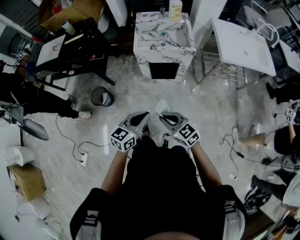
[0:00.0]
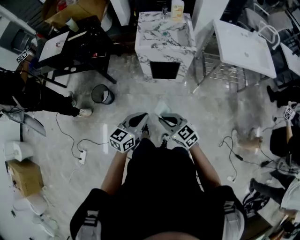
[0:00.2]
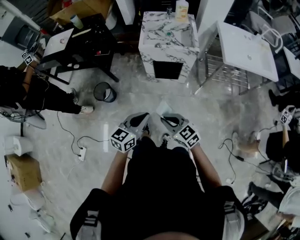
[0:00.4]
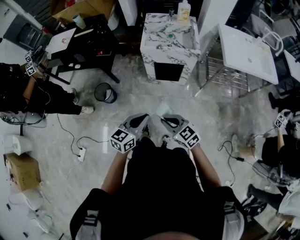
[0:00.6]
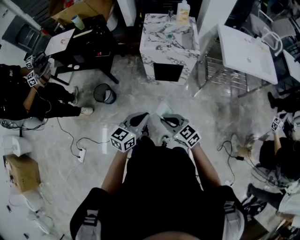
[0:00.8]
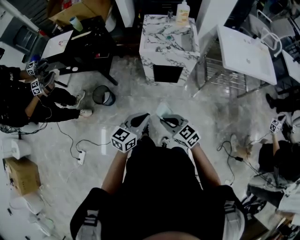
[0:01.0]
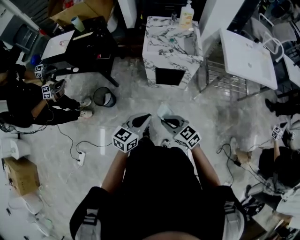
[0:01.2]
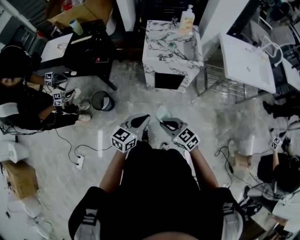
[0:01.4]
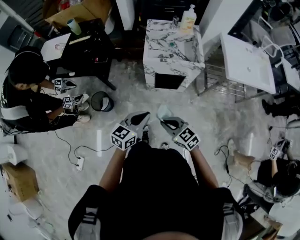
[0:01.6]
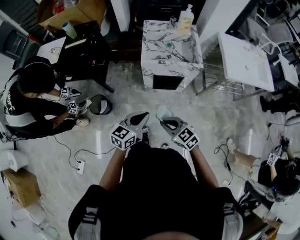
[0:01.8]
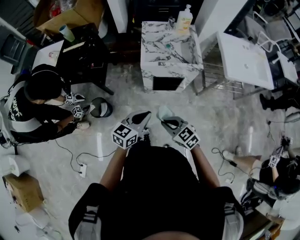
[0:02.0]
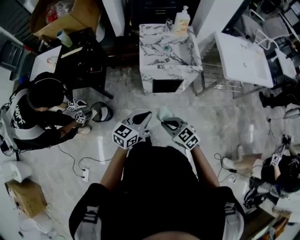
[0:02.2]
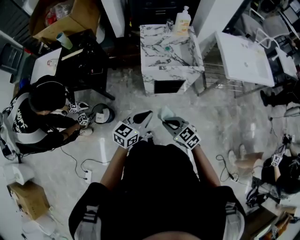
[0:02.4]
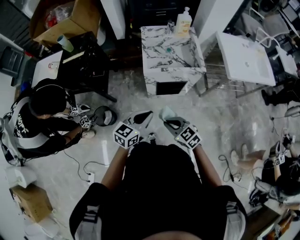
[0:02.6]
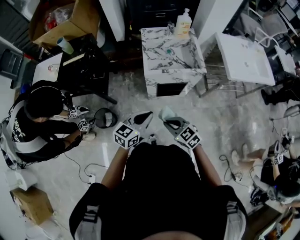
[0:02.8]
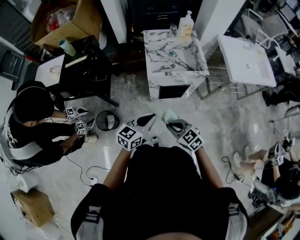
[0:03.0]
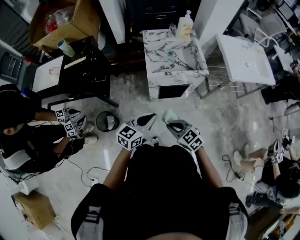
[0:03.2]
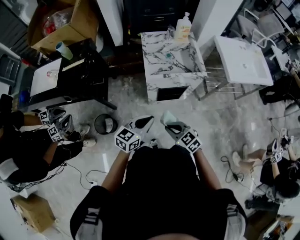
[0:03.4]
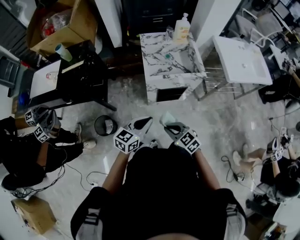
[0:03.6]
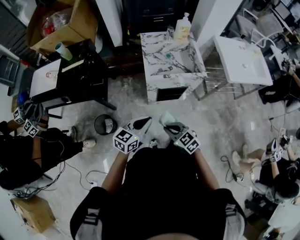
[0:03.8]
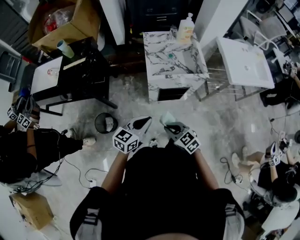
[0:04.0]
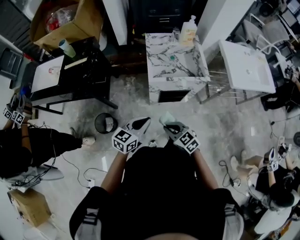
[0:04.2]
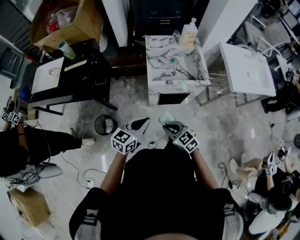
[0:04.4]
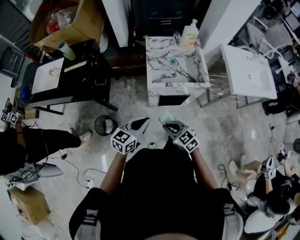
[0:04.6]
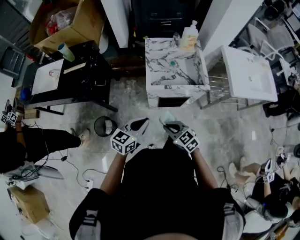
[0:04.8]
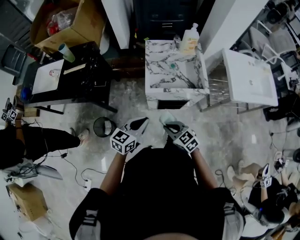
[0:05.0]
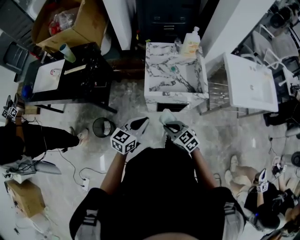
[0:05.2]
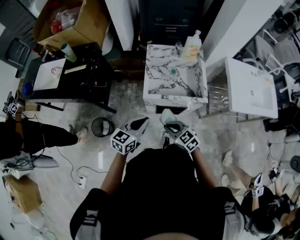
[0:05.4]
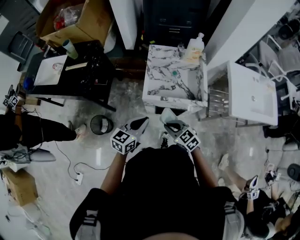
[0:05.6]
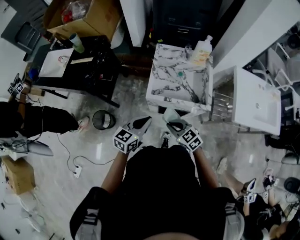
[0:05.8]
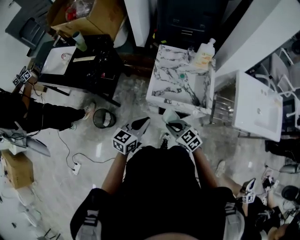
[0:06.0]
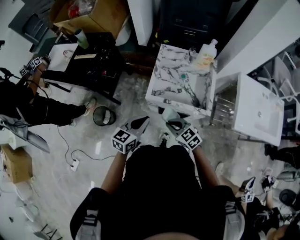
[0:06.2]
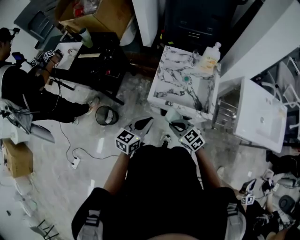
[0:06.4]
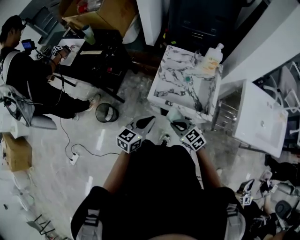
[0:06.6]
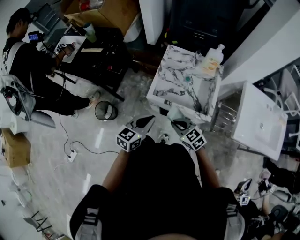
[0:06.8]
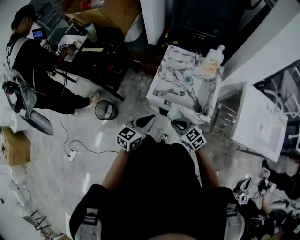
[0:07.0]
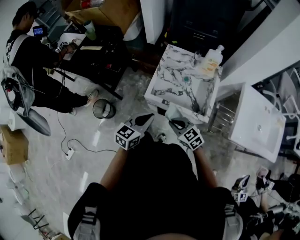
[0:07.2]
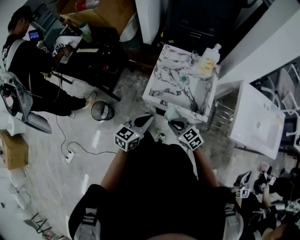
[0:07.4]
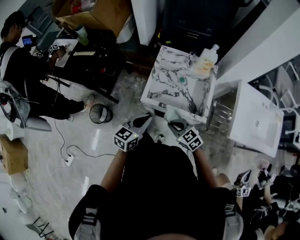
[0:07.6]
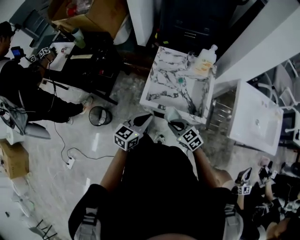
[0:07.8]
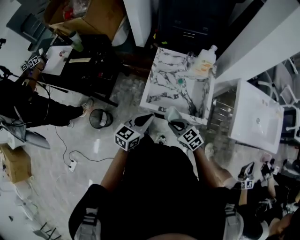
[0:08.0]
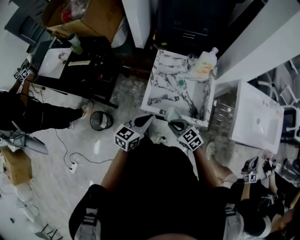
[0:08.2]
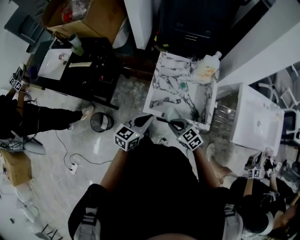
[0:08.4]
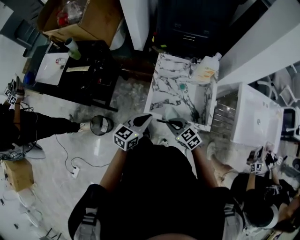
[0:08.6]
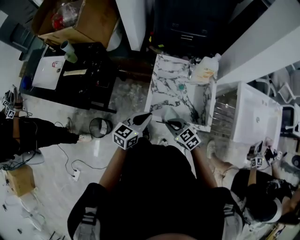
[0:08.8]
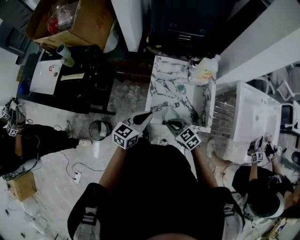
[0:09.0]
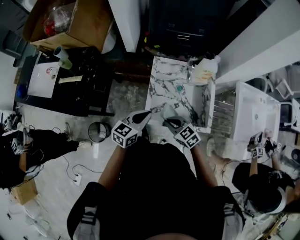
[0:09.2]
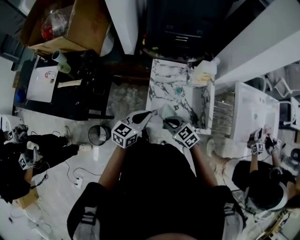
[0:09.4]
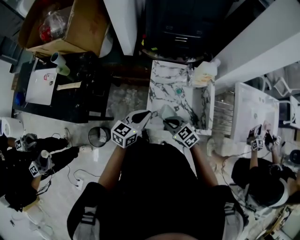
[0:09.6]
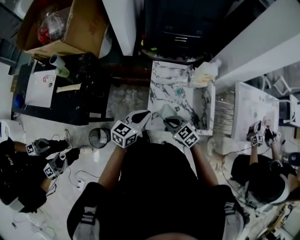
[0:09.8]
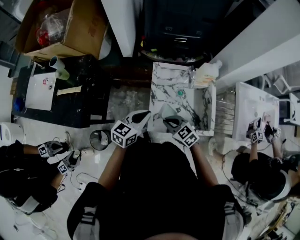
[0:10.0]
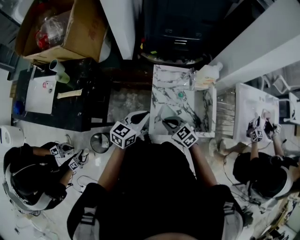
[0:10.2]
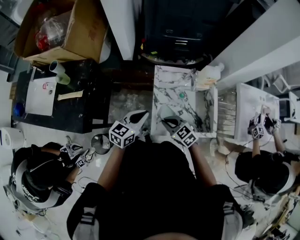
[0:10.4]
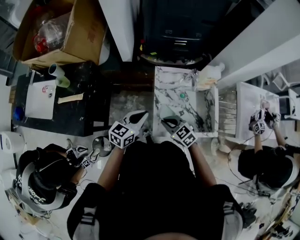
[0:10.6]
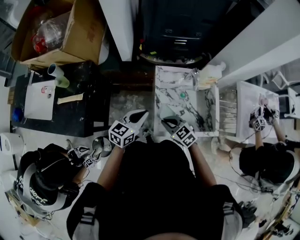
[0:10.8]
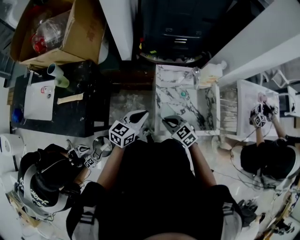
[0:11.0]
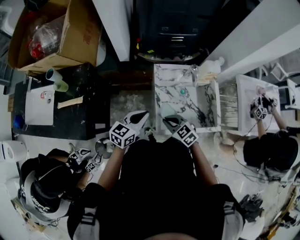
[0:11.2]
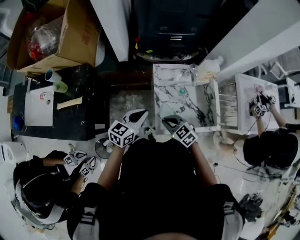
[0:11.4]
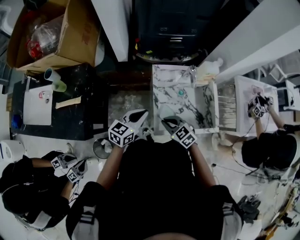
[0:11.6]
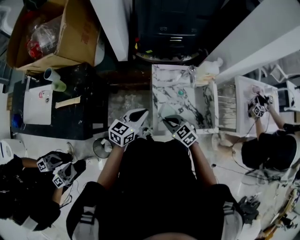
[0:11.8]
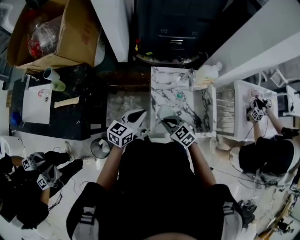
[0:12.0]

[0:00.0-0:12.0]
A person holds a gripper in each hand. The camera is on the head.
0:00.0 to 0:01.6: The grippers both shift forward by about 10 cm.
0:01.6 to 0:03.0: The grippers both shift forward by about 10 cm.
0:03.0 to 0:04.4: The right gripper travels forward by some 5 cm. The left gripper ends up roughly 5 cm from where it was.
0:04.4 to 0:06.0: The grippers both shift forward and to the right by some 15 cm.
0:06.0 to 0:07.6: The grippers both shift to the right by some 5 cm.
0:07.6 to 0:09.0: Both grippers travel together forward, some 15 cm.
0:09.0 to 0:10.4: Both grippers move forward and to the left, approximately 10 cm.
0:10.4 to 0:12.0: The grippers stay close to where they were, moving slightly.

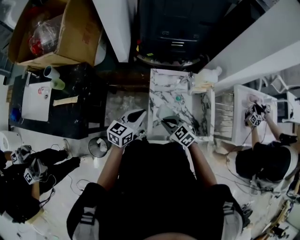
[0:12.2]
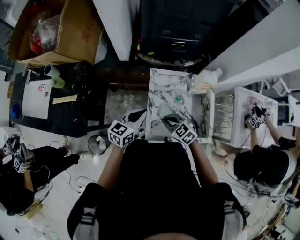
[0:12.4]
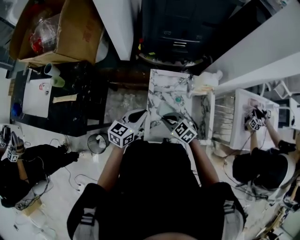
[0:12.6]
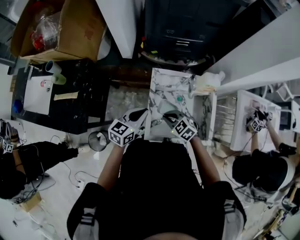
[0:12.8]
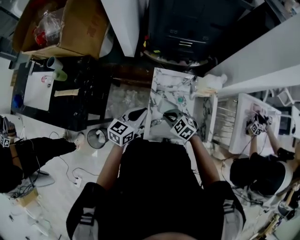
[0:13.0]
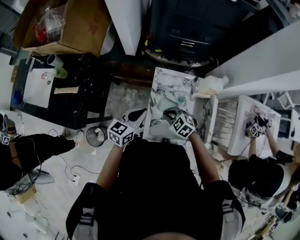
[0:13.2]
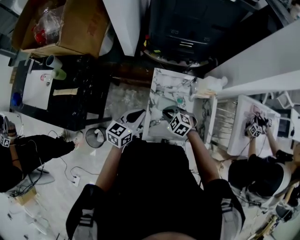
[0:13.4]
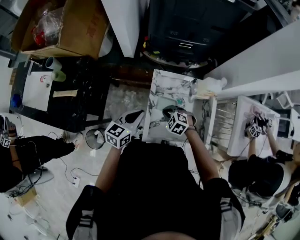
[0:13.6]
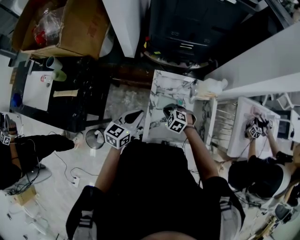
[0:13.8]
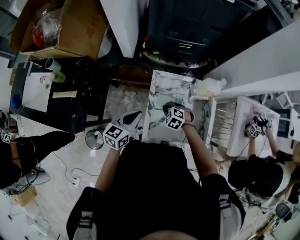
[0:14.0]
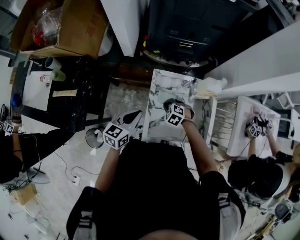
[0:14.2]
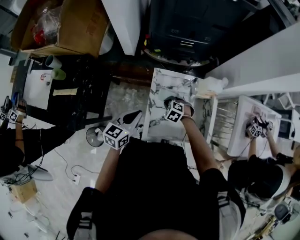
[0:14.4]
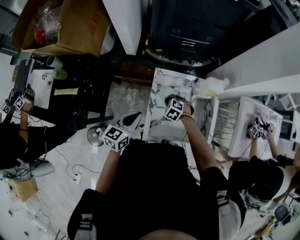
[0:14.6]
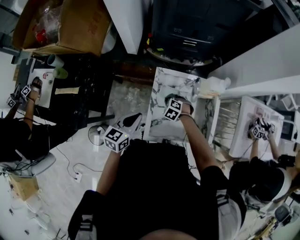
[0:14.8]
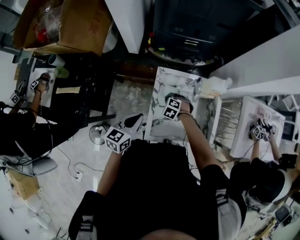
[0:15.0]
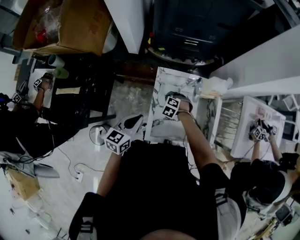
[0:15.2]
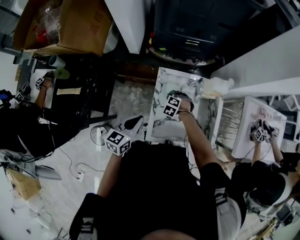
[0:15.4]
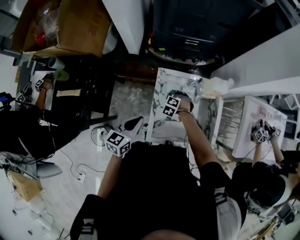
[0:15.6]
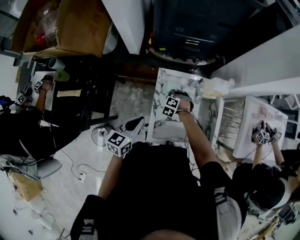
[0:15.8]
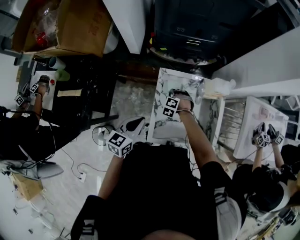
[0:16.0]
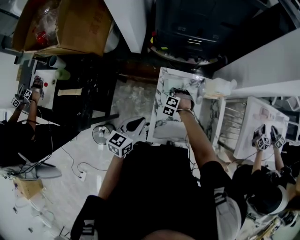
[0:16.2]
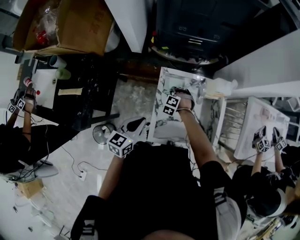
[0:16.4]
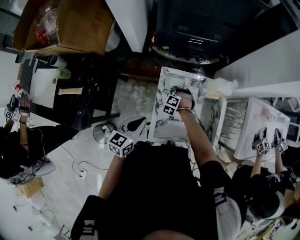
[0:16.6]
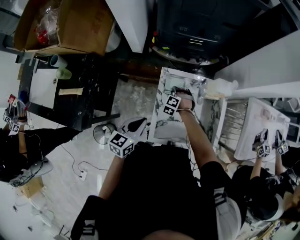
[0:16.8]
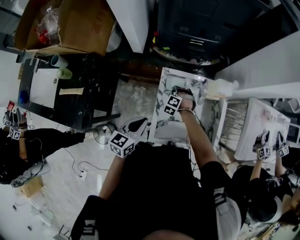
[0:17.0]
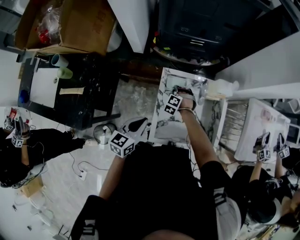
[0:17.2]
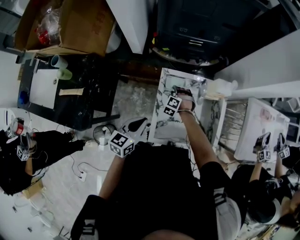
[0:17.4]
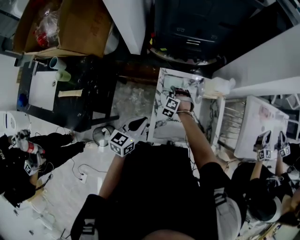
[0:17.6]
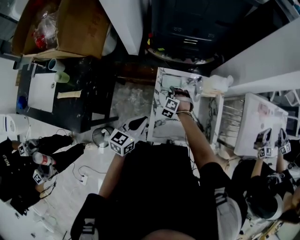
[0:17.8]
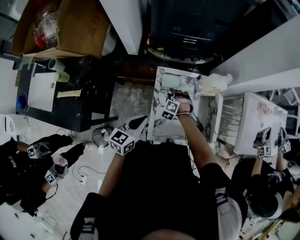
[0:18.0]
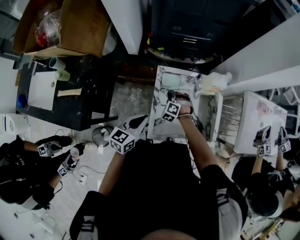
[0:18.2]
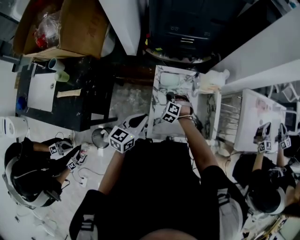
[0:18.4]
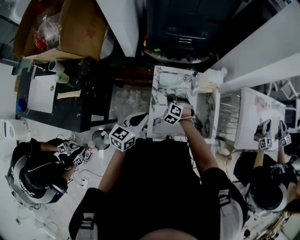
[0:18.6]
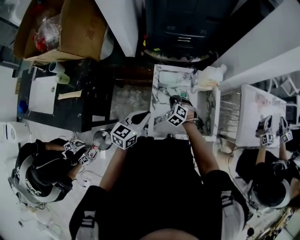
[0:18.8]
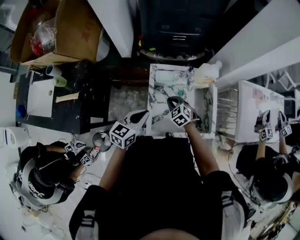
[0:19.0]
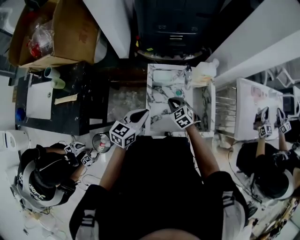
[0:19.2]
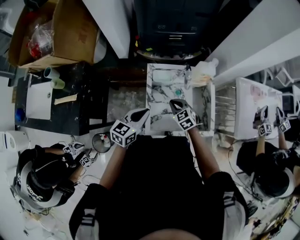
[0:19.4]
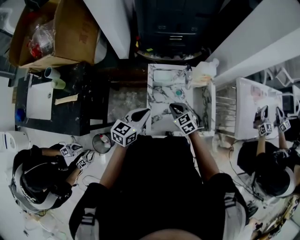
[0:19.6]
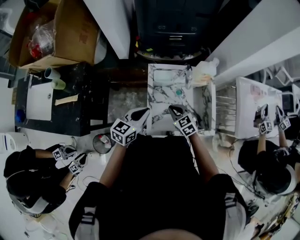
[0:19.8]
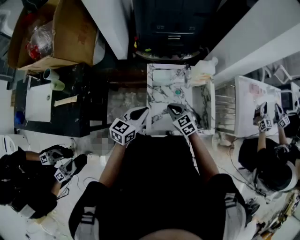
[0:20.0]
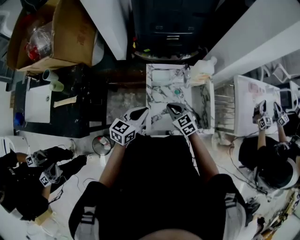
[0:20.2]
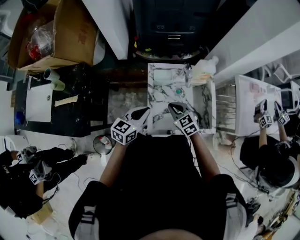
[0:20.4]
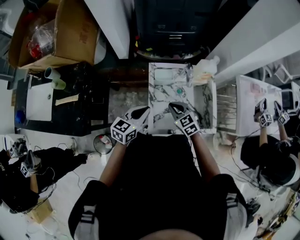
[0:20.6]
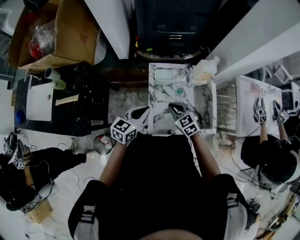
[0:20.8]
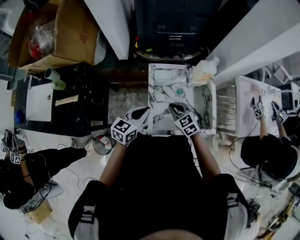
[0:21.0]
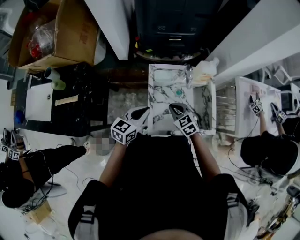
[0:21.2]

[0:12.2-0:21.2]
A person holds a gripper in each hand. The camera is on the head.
0:12.2 to 0:13.8: The right gripper moves forward and downward, some 10 cm, and turns by approximately 30 degrees.
0:13.8 to 0:15.2: The right gripper is displaced forward and downward by about 10 cm.
0:15.2 to 0:16.6: The right gripper is displaced forward by roughly 5 cm.
0:16.6 to 0:18.2: The right gripper shifts by roughly 5 cm.
0:18.2 to 0:19.8: The right gripper travels backward, upward and to the right by roughly 15 cm, and rotates around the line of its fingers by about 40 degrees, clockwise from behind.
0:19.8 to 0:21.2: The grippers move only a little.

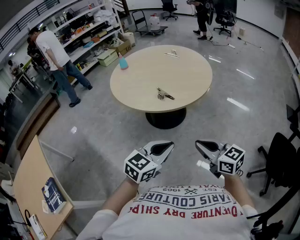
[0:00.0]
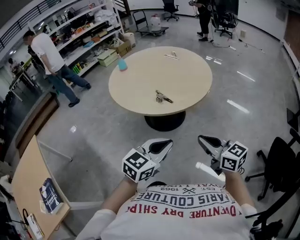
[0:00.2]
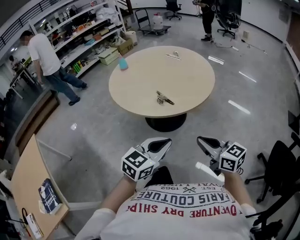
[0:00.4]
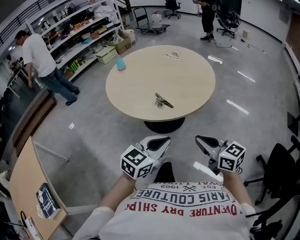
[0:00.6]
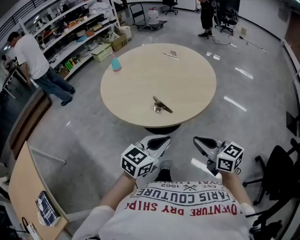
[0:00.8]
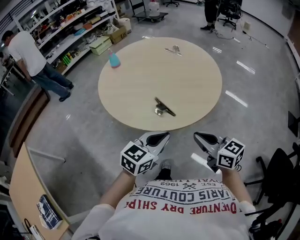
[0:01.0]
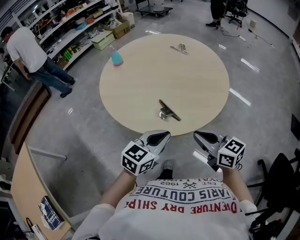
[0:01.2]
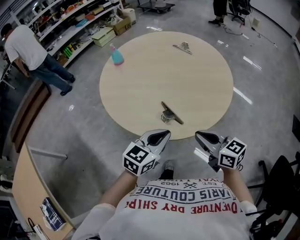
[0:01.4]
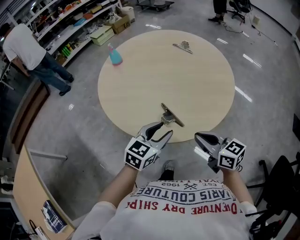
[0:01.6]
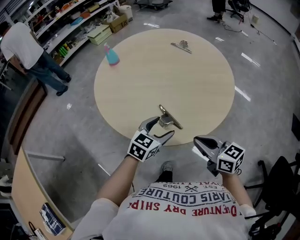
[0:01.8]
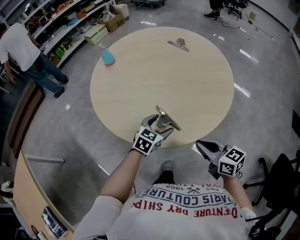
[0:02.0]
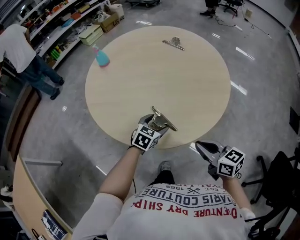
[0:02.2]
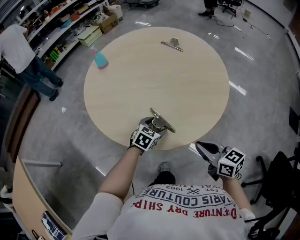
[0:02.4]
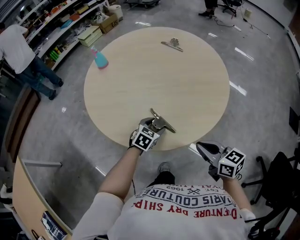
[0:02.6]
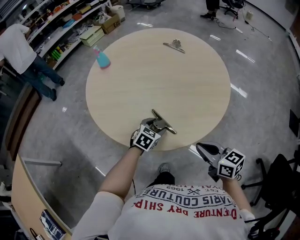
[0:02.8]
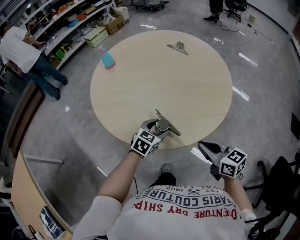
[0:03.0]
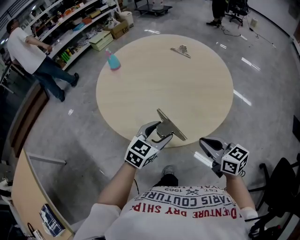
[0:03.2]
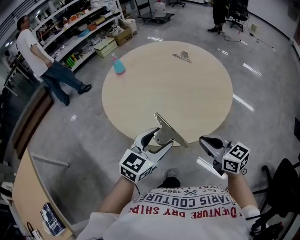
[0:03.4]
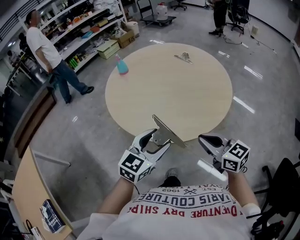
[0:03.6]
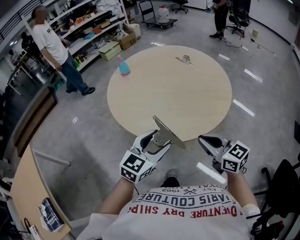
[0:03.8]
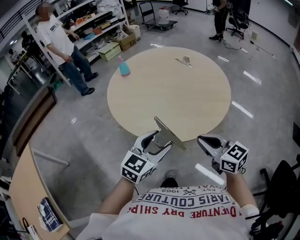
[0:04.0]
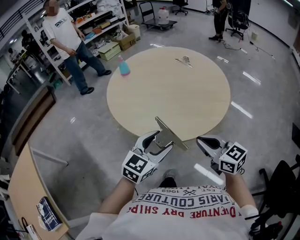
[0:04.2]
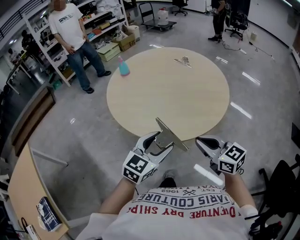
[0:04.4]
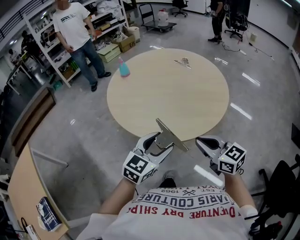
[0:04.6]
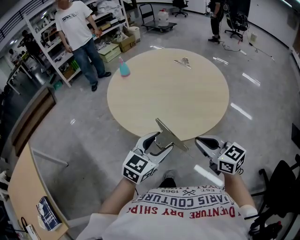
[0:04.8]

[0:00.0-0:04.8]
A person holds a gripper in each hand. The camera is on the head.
0:00.0 to 0:01.6: The two grippers go approximately 35 cm forward. The left gripper opens.
0:01.6 to 0:03.2: The left gripper travels downward and back again, roughly 20 cm each way.
0:03.2 to 0:04.8: The right gripper heads upward and backward, covering approximately 10 cm. The left gripper heads backward and upward, covering approximately 15 cm.
